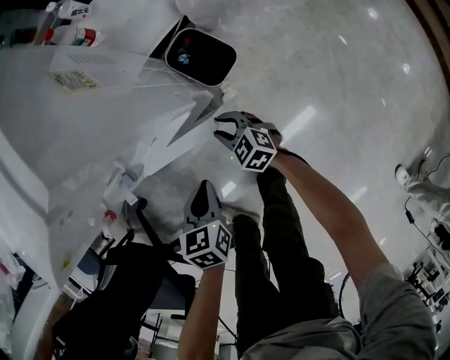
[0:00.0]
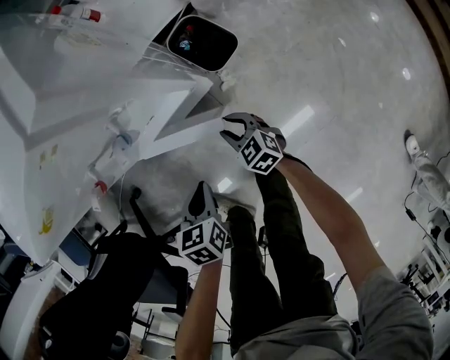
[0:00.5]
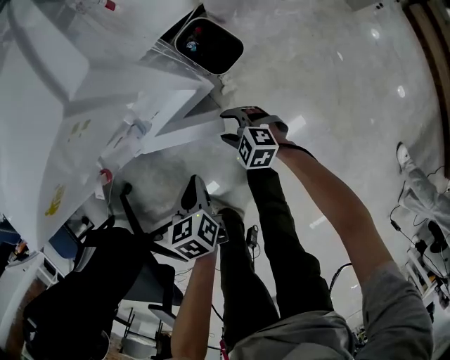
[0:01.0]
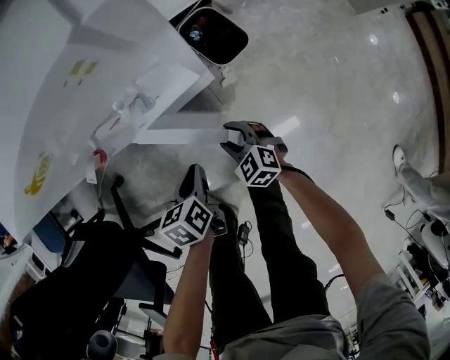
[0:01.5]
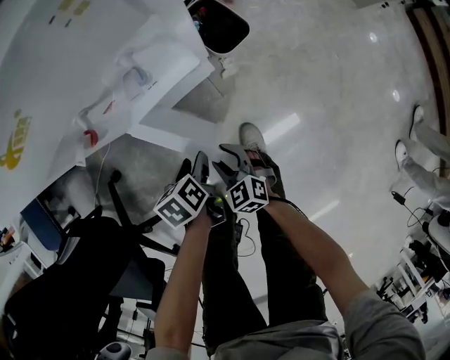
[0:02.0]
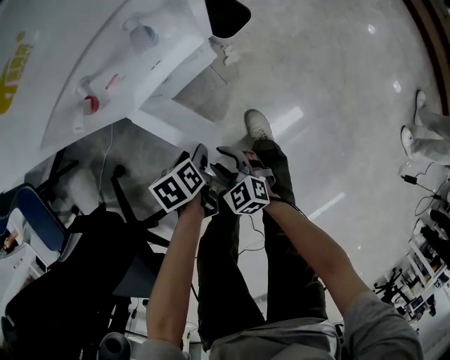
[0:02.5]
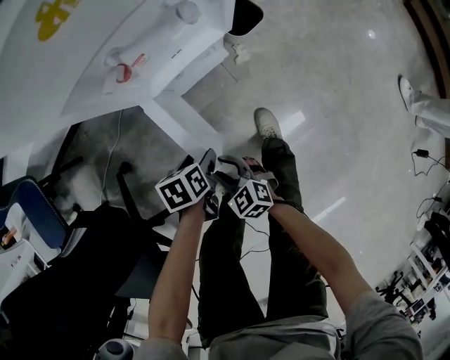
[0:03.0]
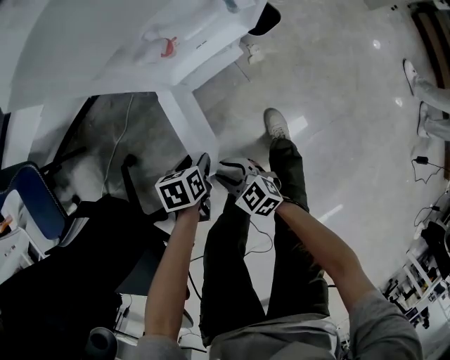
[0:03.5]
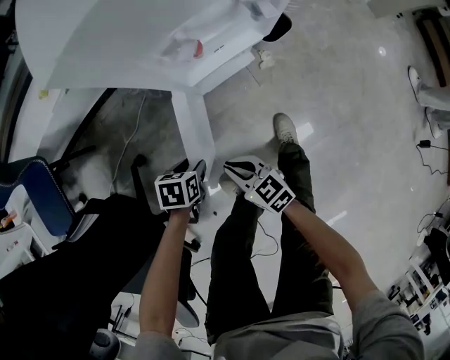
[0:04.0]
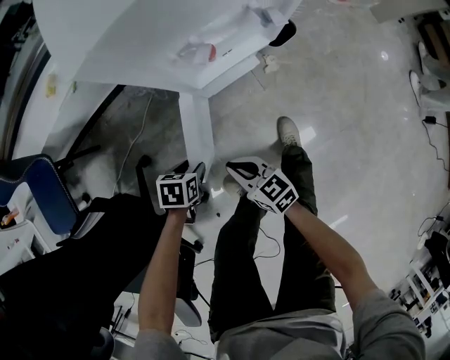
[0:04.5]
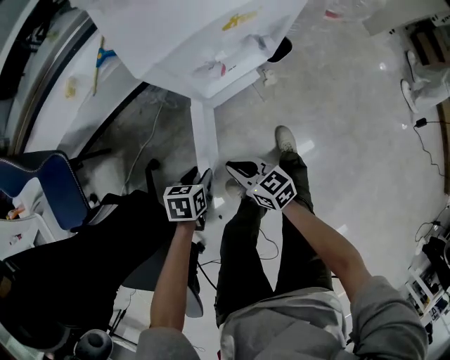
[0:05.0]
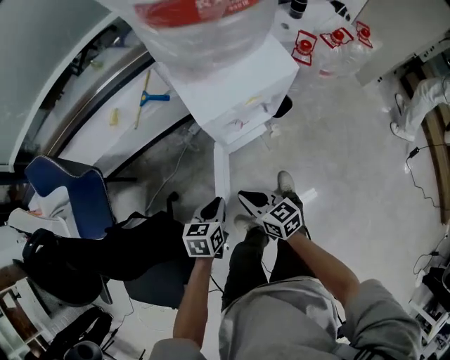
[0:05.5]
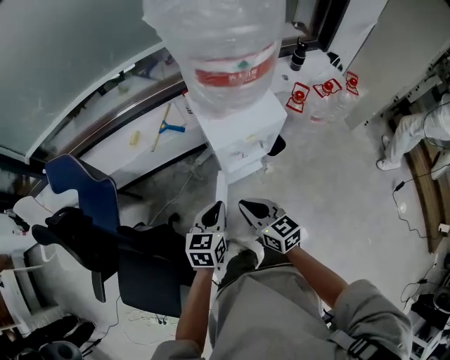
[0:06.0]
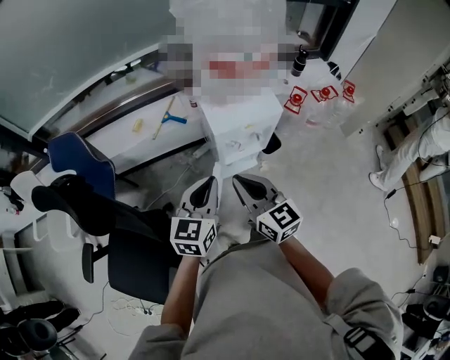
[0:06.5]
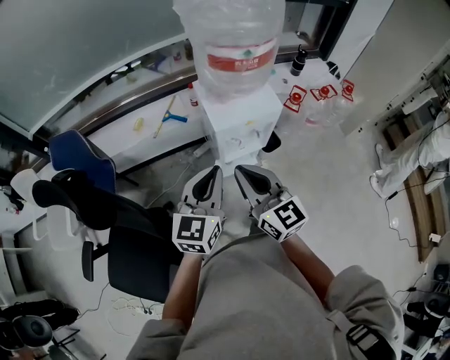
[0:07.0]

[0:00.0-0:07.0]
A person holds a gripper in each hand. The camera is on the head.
0:00.0 to 0:02.0: The right gripper heads backward and to the left, covering roughly 20 cm. Meanwhile the left gripper heads to the left, downward and backward, covering approximately 15 cm, swivels some 30 degrees, and opens.
0:02.0 to 0:03.5: The grippers both shift to the left and backward by approximately 15 cm. The left gripper rotates some 20 degrees.
0:03.5 to 0:05.0: The left gripper shifts about 10 cm upward and to the left. Meanwhile the right gripper goes approximately 15 cm upward and forward, changes its angle by approximately 20 degrees, and closes its fingers.
0:05.0 to 0:07.0: The two grippers go approximately 50 cm upward. The right gripper changes its angle by roughly 40 degrees; the left gripper points its fingers some 60 degrees further upward, and closes.

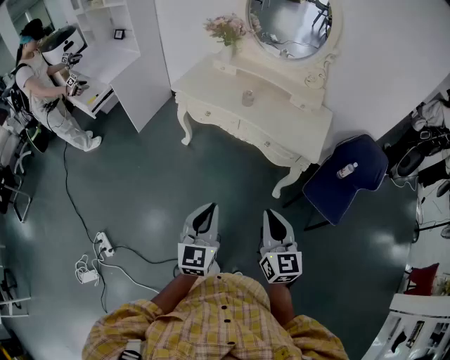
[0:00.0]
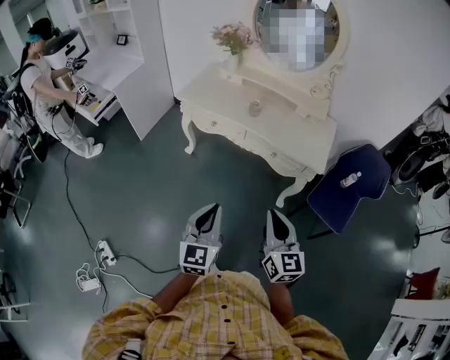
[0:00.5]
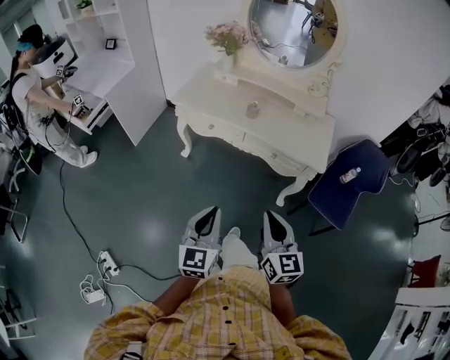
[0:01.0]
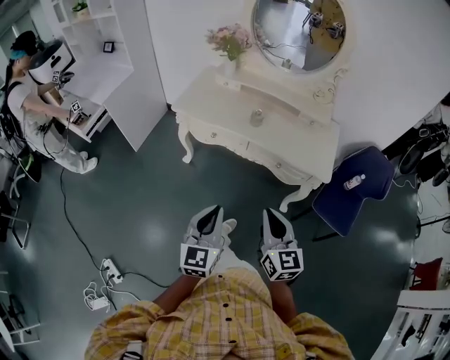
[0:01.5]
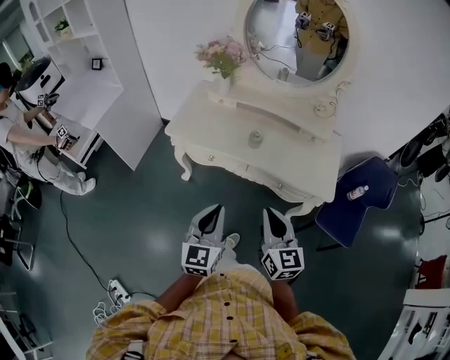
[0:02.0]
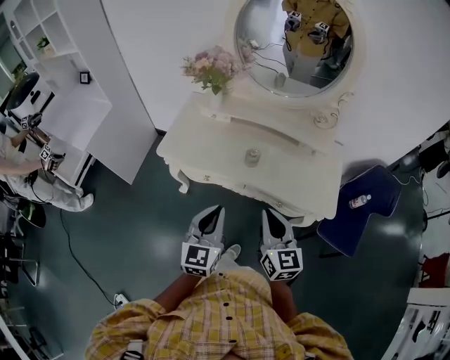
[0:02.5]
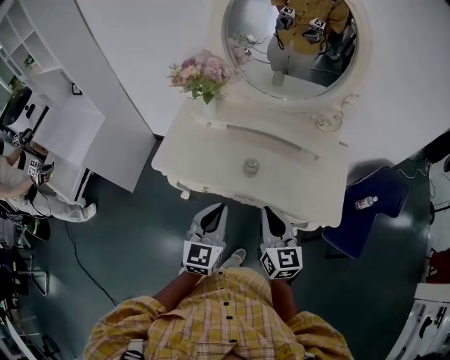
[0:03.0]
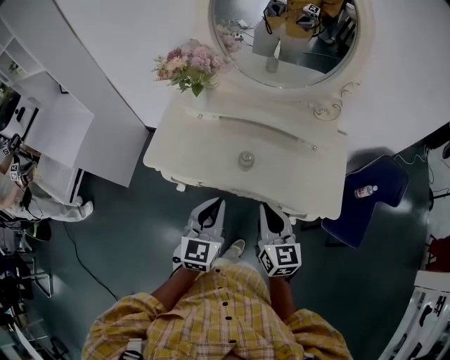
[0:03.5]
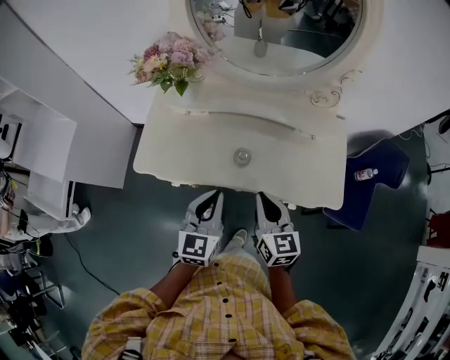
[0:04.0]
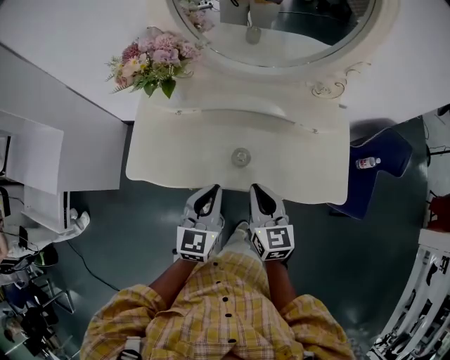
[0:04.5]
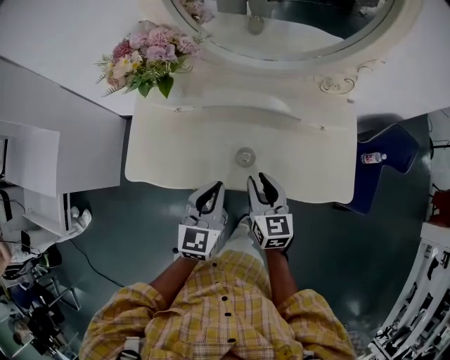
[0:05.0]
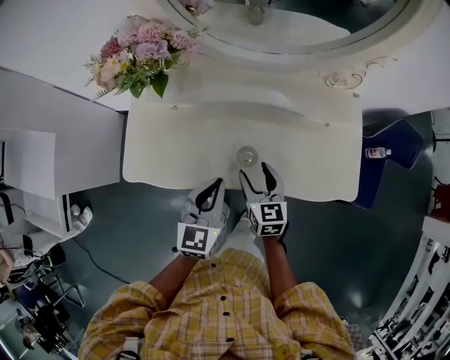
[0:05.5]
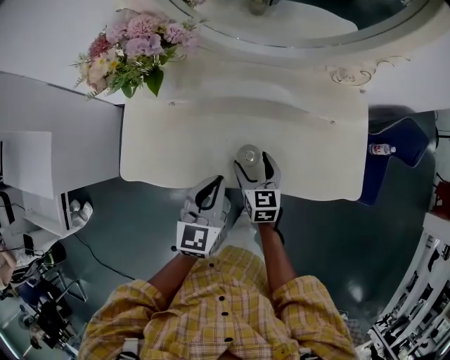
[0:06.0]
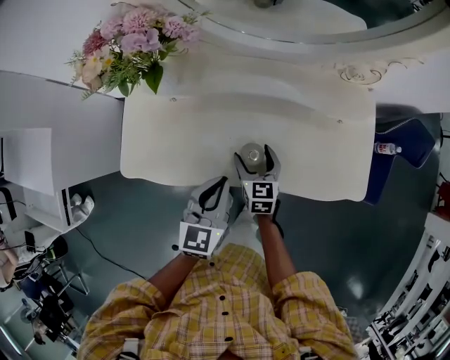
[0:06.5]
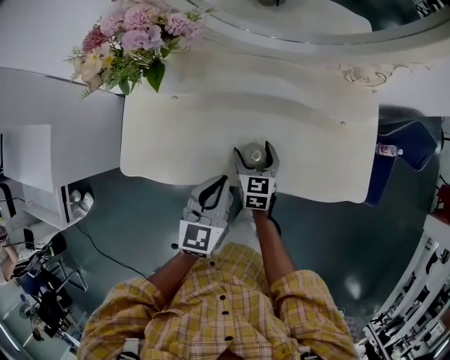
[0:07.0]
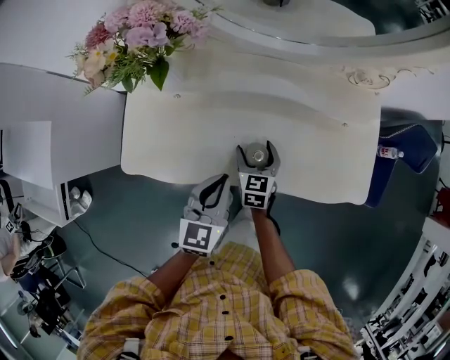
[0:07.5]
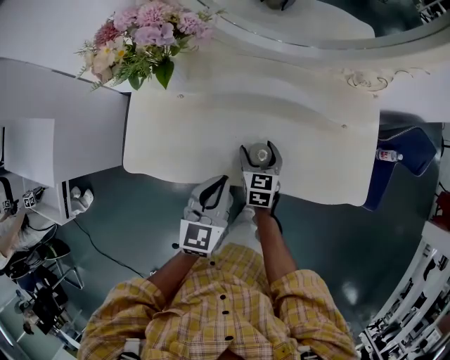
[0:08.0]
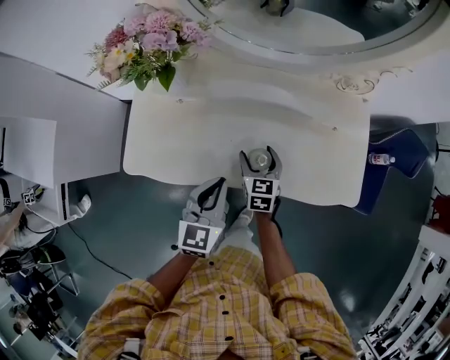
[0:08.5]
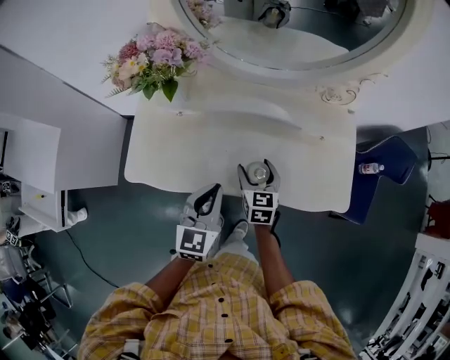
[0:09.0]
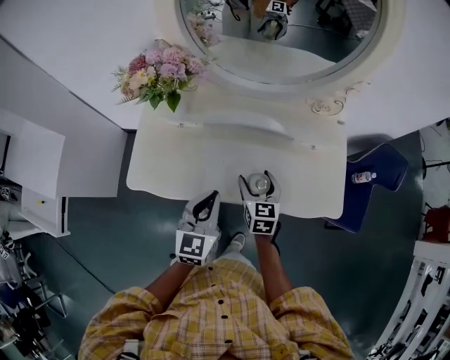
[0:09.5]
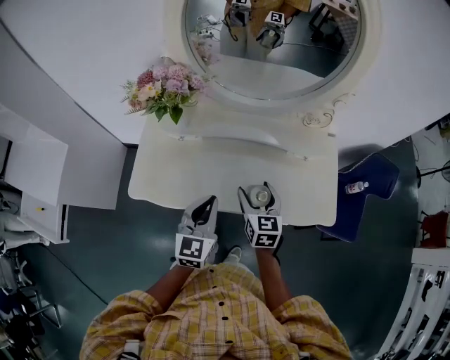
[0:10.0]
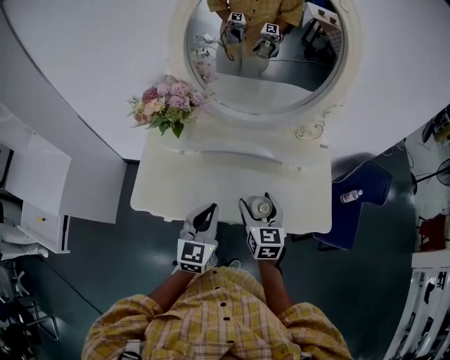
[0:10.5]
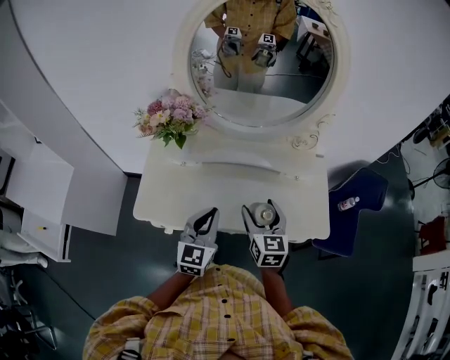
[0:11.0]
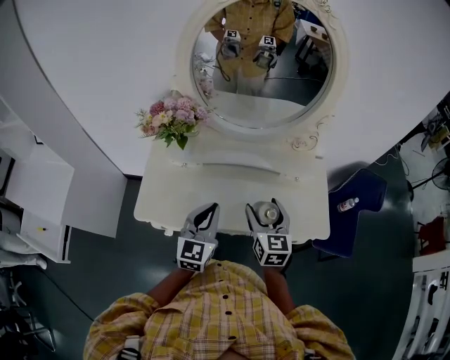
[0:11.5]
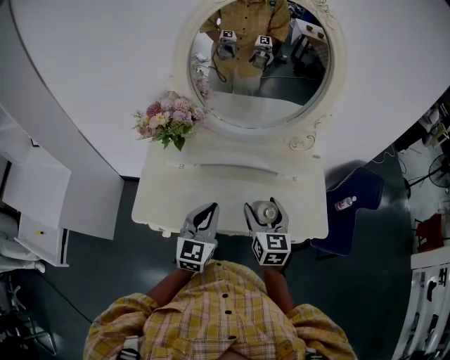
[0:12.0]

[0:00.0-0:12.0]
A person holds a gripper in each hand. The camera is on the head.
0:00.0 to 0:02.0: The left gripper shifts approximately 25 cm forward. Meanwhile the right gripper goes roughly 25 cm forward and to the left.
0:02.0 to 0:04.0: The two grippers go about 25 cm forward.
0:04.0 to 0:06.0: The left gripper travels forward and downward by roughly 15 cm. Meanwhile the right gripper heads downward and forward, covering some 25 cm, and opens up.
0:06.0 to 0:08.0: The right gripper moves approximately 5 cm.
0:08.0 to 0:10.0: The right gripper moves upward, approximately 20 cm. Meanwhile the left gripper is displaced upward by some 10 cm.
0:10.0 to 0:12.0: The left gripper heads upward, covering about 5 cm. Meanwhile the right gripper is displaced upward by roughly 10 cm.

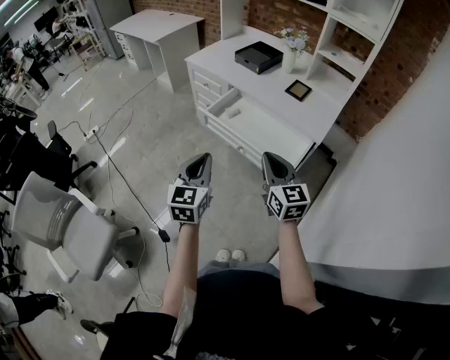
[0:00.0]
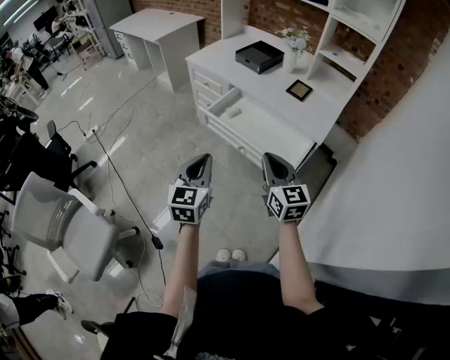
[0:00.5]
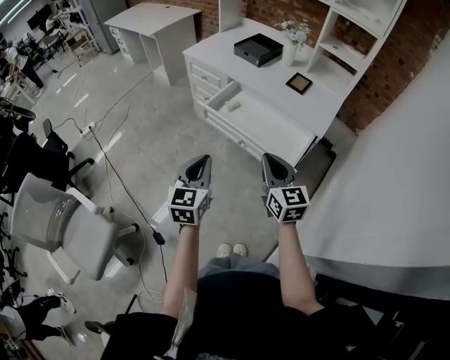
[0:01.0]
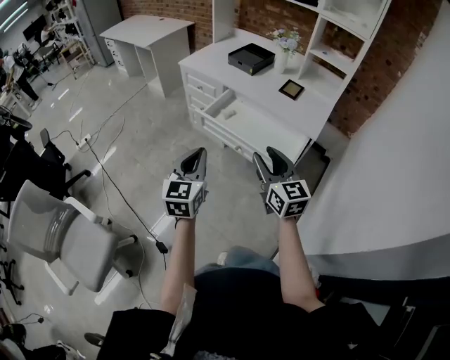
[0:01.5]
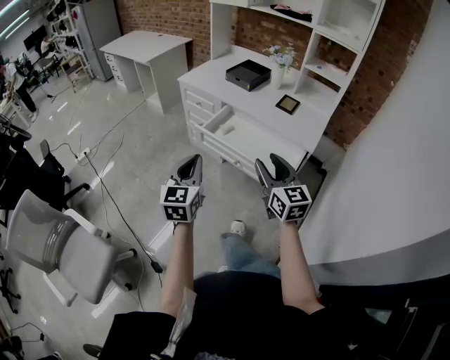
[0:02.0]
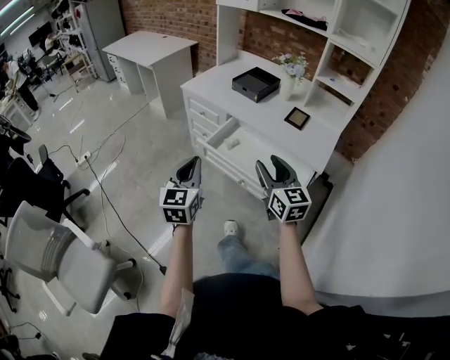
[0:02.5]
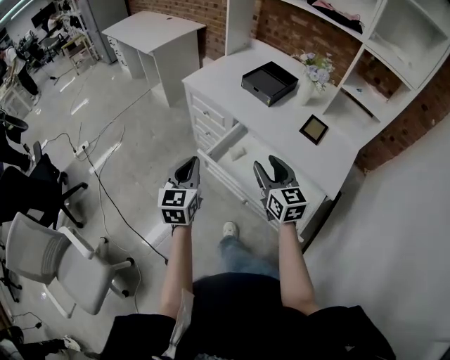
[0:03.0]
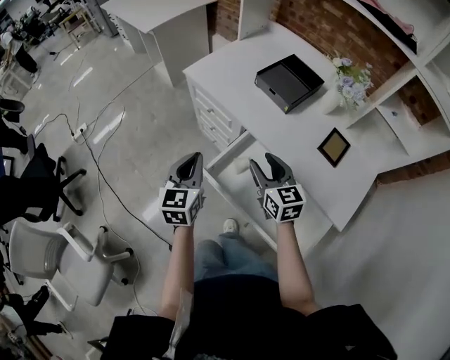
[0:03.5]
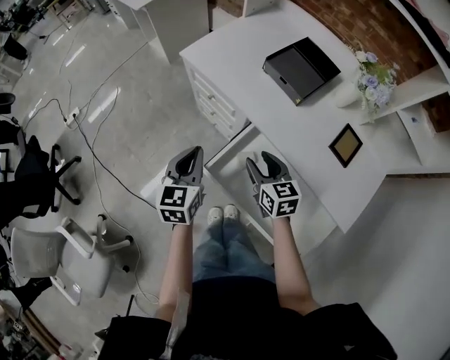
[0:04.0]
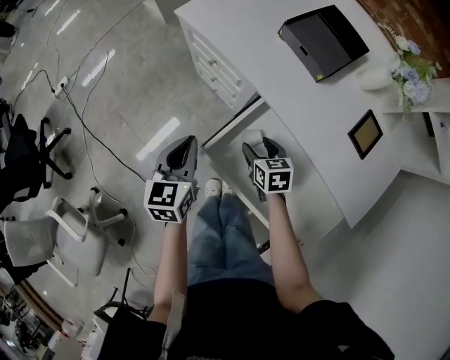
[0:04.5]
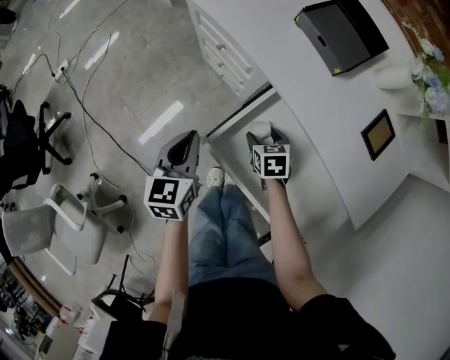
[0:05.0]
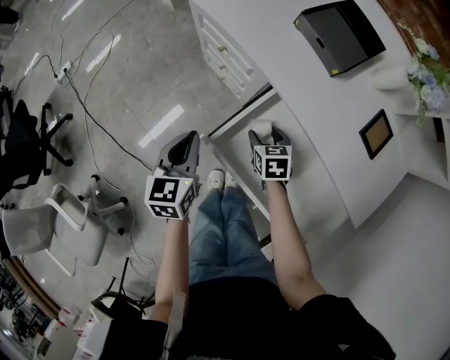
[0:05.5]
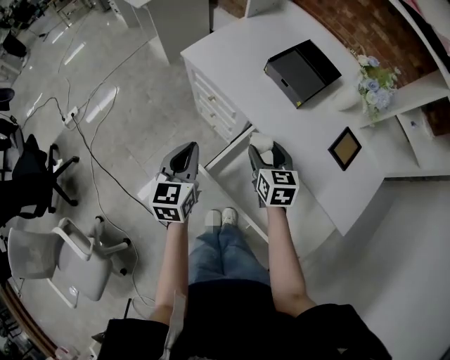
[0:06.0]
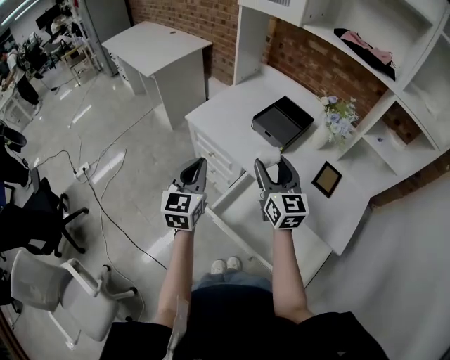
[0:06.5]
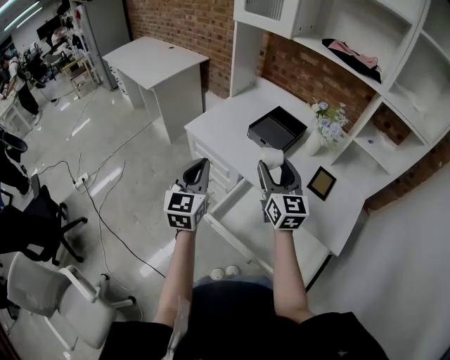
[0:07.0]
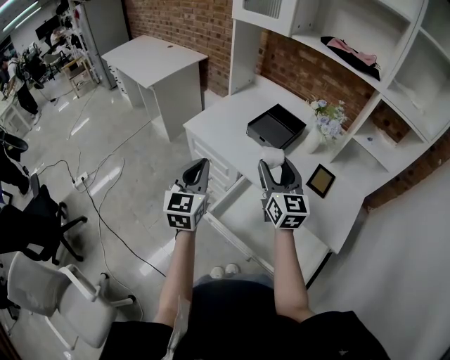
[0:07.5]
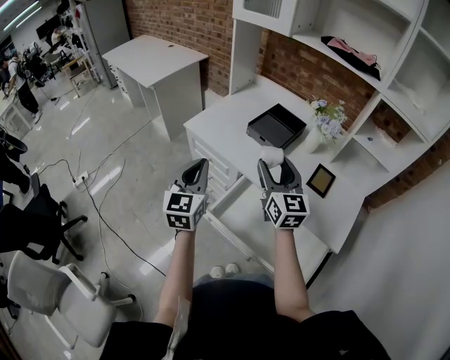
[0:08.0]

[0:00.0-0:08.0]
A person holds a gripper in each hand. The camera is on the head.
0:00.0 to 0:02.0: The left gripper is displaced to the left by approximately 5 cm. Meanwhile the right gripper opens.
0:02.0 to 0:04.0: The pair of grippers is taken forward, some 50 cm. The left gripper changes its angle by some 20 degrees. Meanwhile the right gripper is displaced downward by approximately 20 cm, and changes its angle by some 30 degrees.
0:04.0 to 0:06.0: The left gripper moves about 10 cm downward and comes back. Meanwhile the right gripper goes downward and returns, about 20 cm each way.
0:06.0 to 0:08.0: Both grippers move upward, approximately 20 cm. The left gripper changes its angle by approximately 20 degrees. Meanwhile the right gripper points its fingers some 30 degrees further upward.
